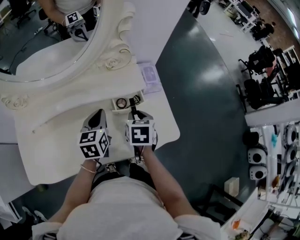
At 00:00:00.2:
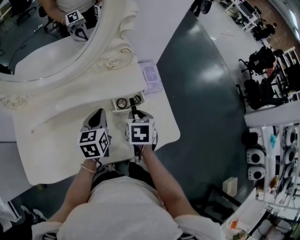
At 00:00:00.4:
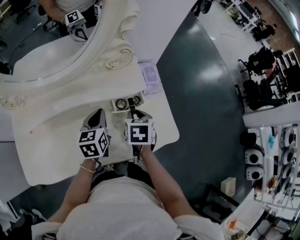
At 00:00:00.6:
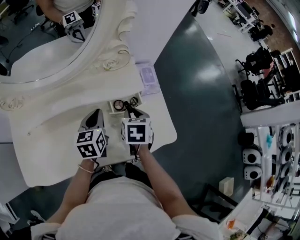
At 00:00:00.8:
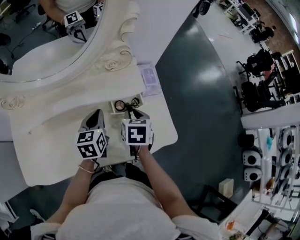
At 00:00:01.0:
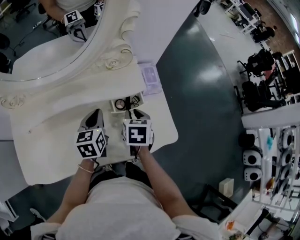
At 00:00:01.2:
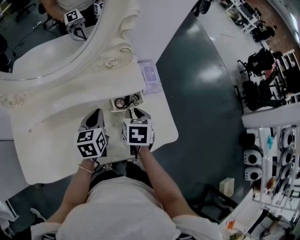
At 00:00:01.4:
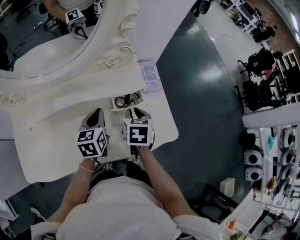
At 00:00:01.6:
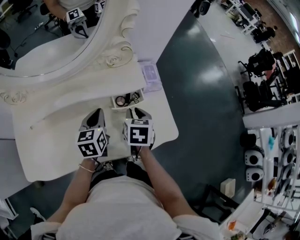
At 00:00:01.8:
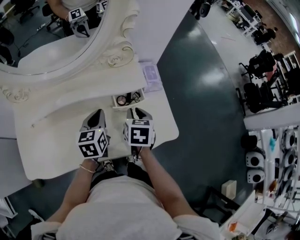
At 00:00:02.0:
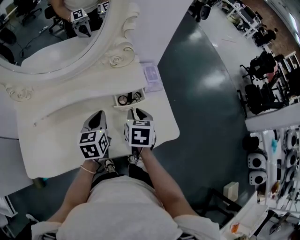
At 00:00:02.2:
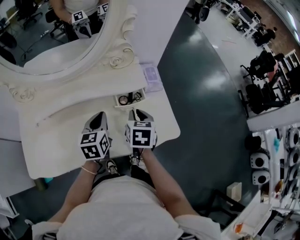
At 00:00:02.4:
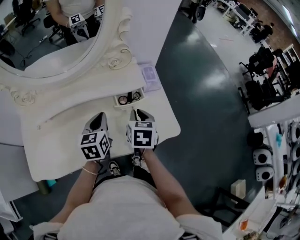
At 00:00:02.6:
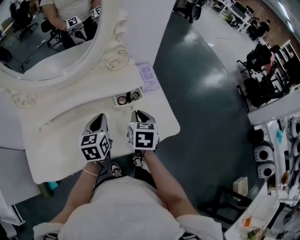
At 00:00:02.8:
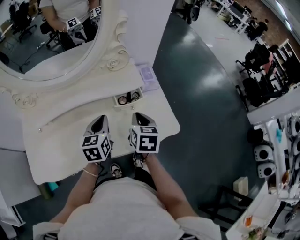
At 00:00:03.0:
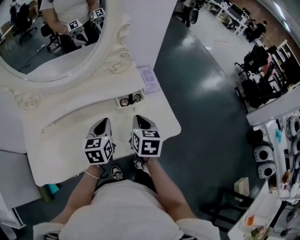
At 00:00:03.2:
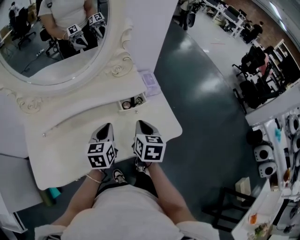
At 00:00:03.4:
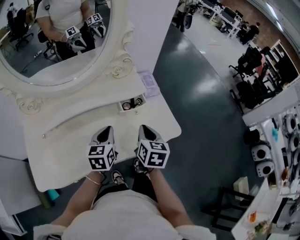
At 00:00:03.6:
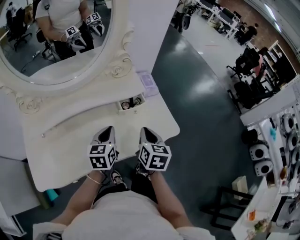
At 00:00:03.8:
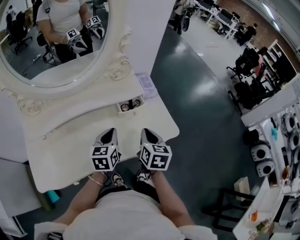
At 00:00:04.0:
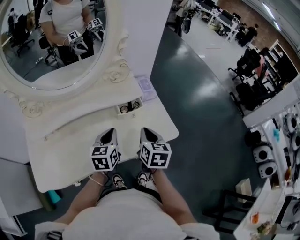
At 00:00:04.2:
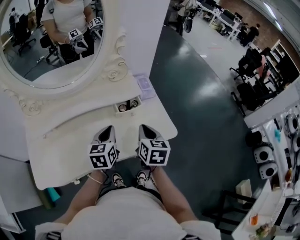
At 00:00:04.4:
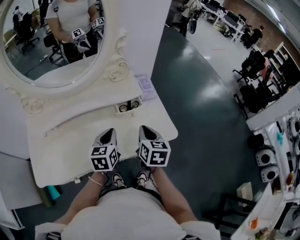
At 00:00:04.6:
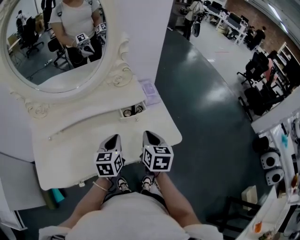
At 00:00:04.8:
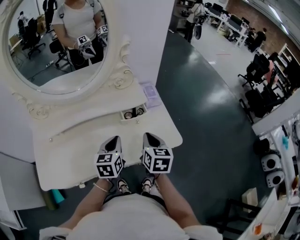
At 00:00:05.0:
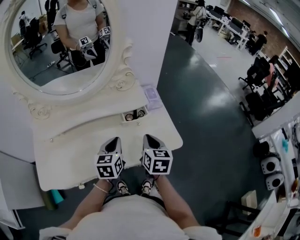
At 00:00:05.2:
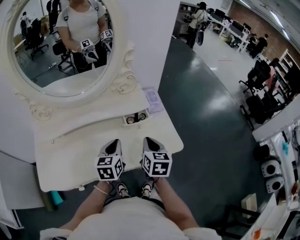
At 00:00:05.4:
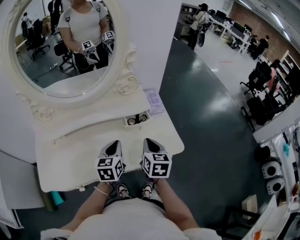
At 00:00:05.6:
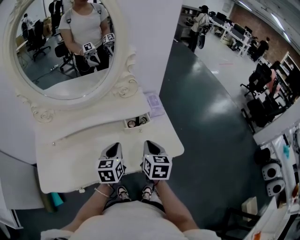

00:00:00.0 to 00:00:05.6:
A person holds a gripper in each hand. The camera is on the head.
00:00:00.0 to 00:00:01.4: The grippers make only small movements.
00:00:01.4 to 00:00:02.8: The two grippers go some 5 cm backward.
00:00:02.8 to 00:00:04.2: The right gripper moves backward, some 5 cm.
00:00:04.2 to 00:00:05.6: There are only small adjustments of the grippers.

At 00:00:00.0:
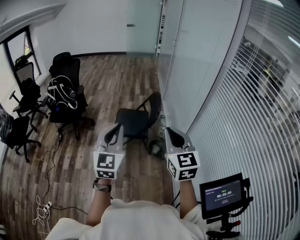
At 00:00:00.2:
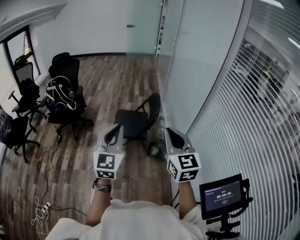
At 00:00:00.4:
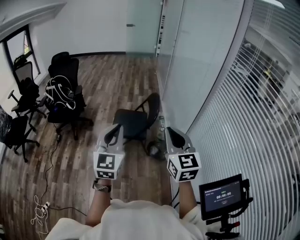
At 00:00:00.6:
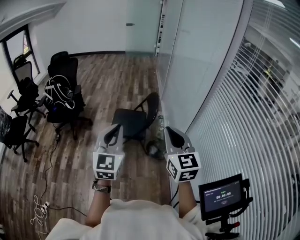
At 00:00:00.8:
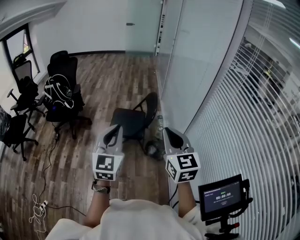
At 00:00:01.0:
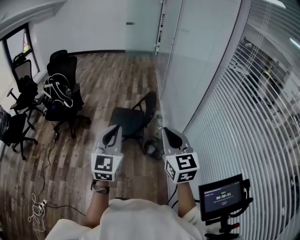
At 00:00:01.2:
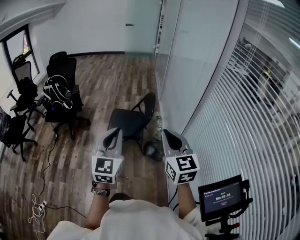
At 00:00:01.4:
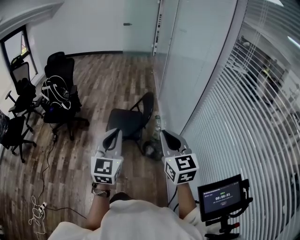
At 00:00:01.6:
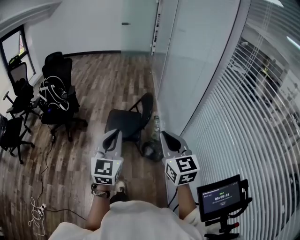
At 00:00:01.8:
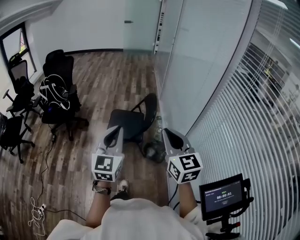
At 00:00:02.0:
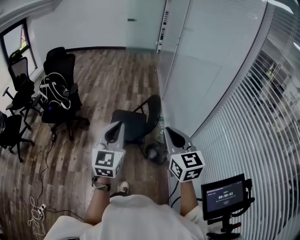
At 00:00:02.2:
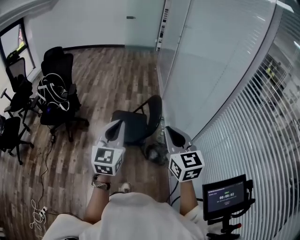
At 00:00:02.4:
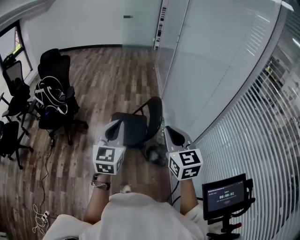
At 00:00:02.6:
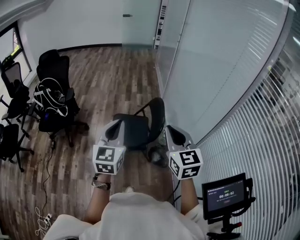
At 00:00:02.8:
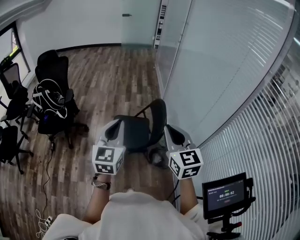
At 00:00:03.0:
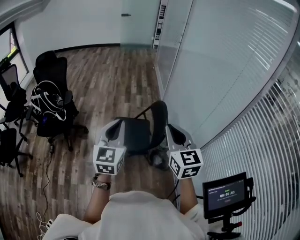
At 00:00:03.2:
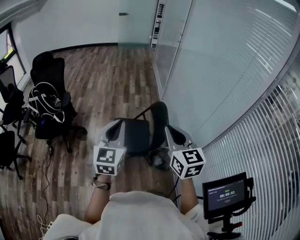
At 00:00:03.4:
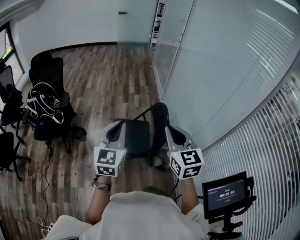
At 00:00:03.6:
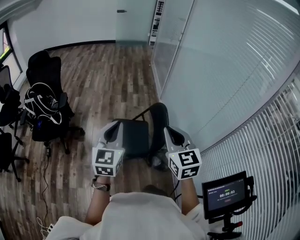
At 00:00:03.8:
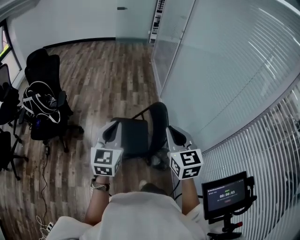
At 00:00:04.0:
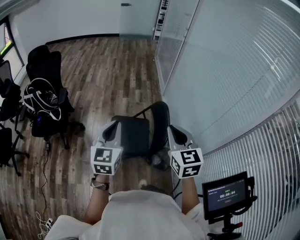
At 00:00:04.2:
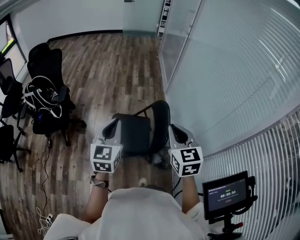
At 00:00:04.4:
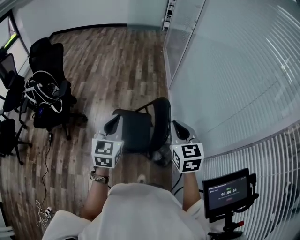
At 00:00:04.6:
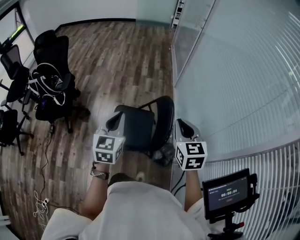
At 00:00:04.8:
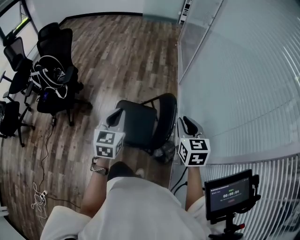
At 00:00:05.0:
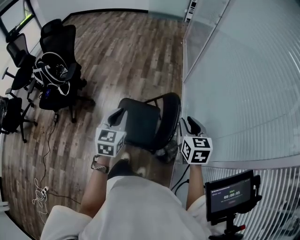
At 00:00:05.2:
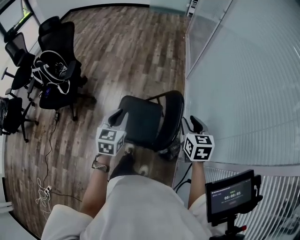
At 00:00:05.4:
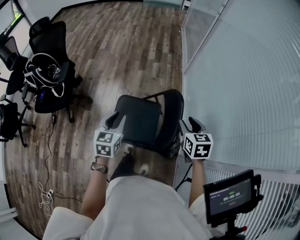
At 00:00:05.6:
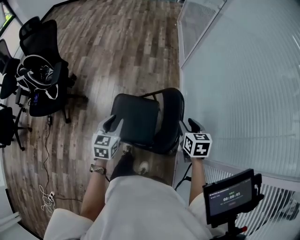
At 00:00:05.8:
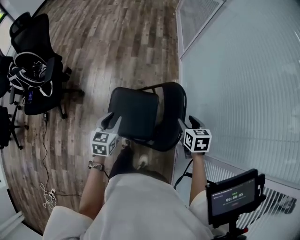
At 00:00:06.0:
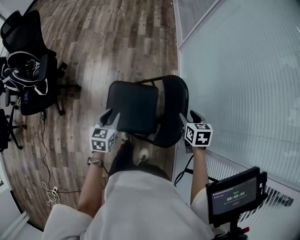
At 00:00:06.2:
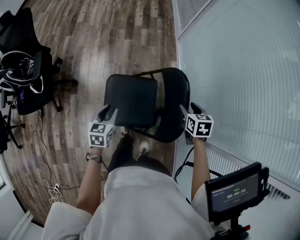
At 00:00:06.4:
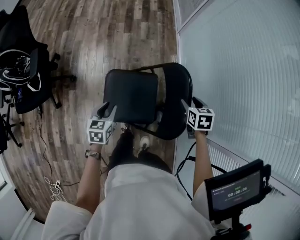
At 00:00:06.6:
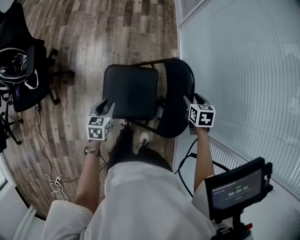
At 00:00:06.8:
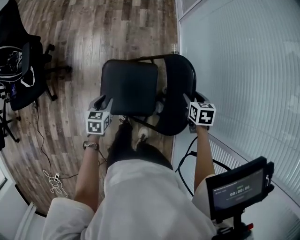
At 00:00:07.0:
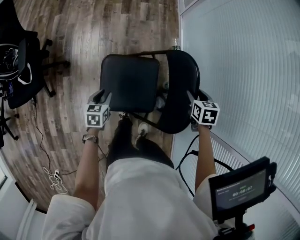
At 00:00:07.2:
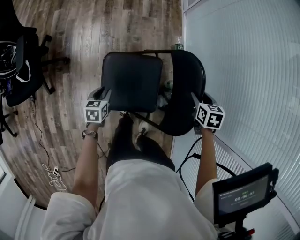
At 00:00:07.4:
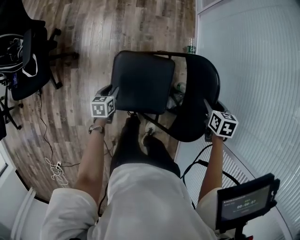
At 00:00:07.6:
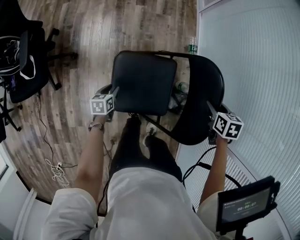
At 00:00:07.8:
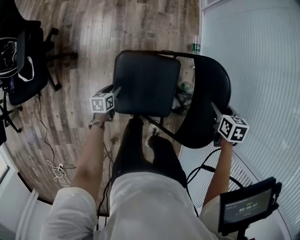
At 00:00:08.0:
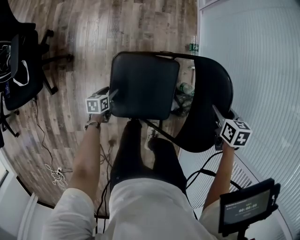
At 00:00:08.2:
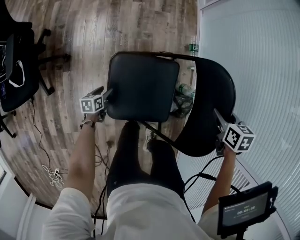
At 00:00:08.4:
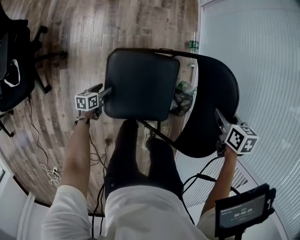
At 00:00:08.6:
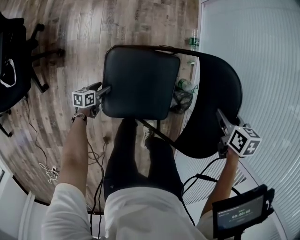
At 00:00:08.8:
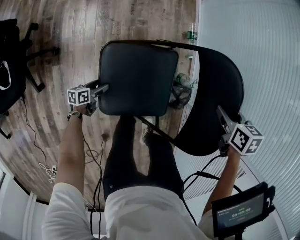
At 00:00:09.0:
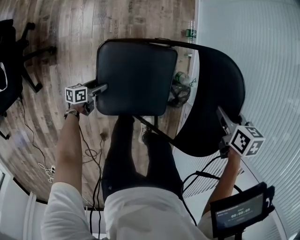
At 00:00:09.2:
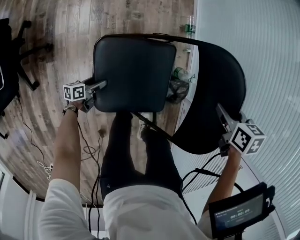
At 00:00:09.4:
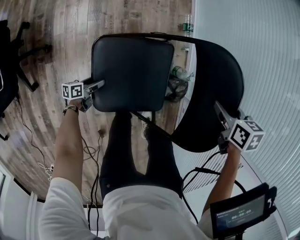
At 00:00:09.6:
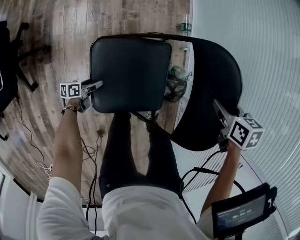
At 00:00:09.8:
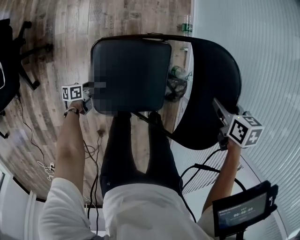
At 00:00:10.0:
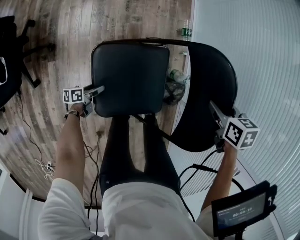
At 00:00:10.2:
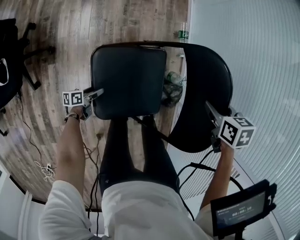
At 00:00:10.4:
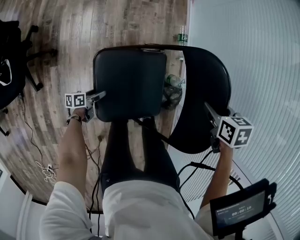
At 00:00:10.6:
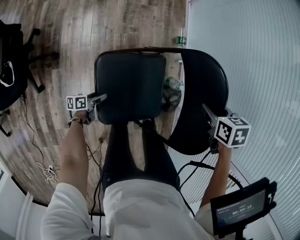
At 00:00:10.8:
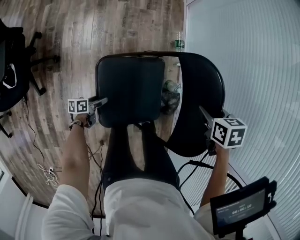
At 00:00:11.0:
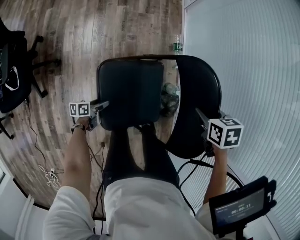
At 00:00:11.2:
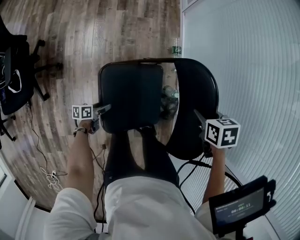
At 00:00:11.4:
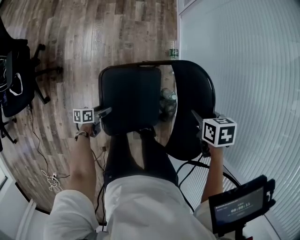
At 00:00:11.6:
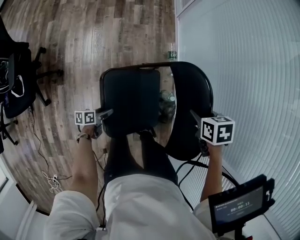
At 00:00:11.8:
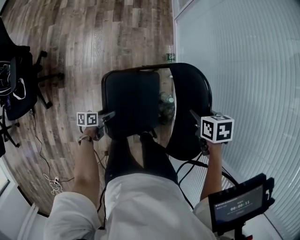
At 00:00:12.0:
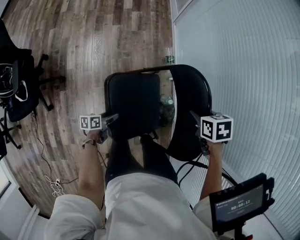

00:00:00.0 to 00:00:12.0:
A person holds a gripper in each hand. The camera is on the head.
00:00:00.0 to 00:00:01.6: The left gripper moves to the right, approximately 5 cm.
00:00:01.6 to 00:00:03.0: The two grippers go about 20 cm forward.
00:00:03.0 to 00:00:04.4: The two grippers go some 10 cm forward and downward.
00:00:04.4 to 00:00:06.0: The right gripper goes some 30 cm downward and forward, points its fingers about 30 degrees further downward, and opens up. The left gripper travels downward by roughly 25 cm, swivels about 30 degrees, and opens up.
00:00:06.0 to 00:00:07.6: The left gripper travels downward by about 25 cm, and changes its angle by approximately 30 degrees. Meanwhile the right gripper shifts roughly 10 cm downward.
00:00:07.6 to 00:00:09.0: The left gripper travels downward by approximately 15 cm, rotates approximately 30 degrees, and opens.
00:00:09.0 to 00:00:10.4: The left gripper shifts by some 5 cm.
00:00:10.4 to 00:00:12.0: The right gripper moves about 5 cm, while the left gripper heads upward, covering some 10 cm.

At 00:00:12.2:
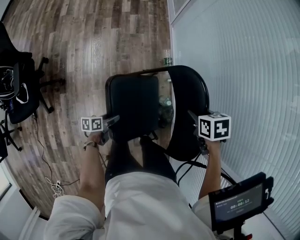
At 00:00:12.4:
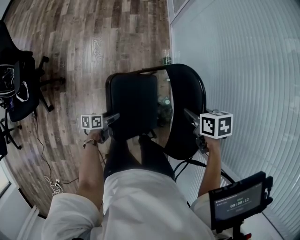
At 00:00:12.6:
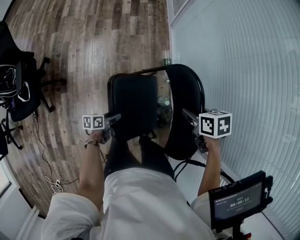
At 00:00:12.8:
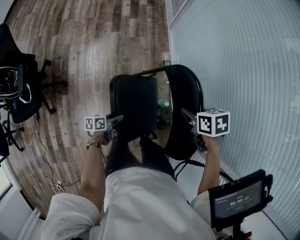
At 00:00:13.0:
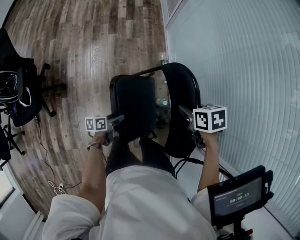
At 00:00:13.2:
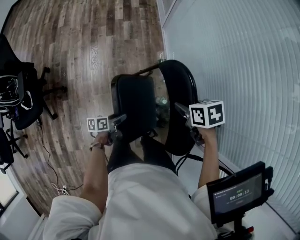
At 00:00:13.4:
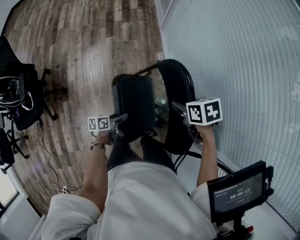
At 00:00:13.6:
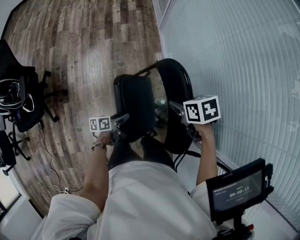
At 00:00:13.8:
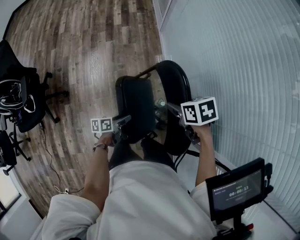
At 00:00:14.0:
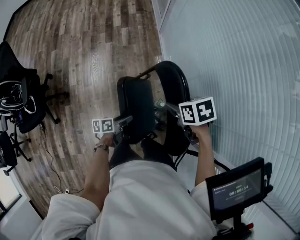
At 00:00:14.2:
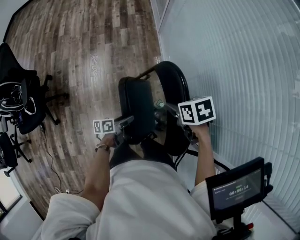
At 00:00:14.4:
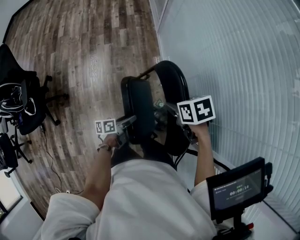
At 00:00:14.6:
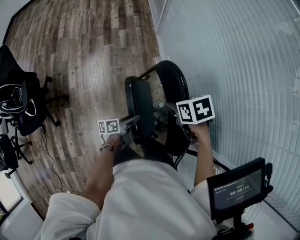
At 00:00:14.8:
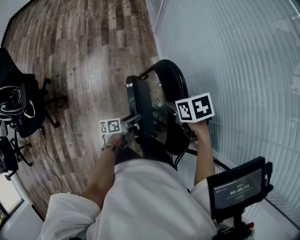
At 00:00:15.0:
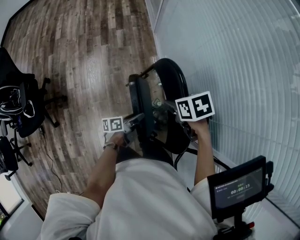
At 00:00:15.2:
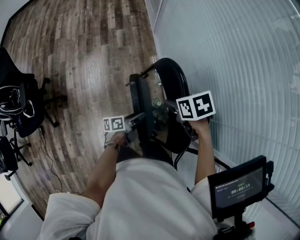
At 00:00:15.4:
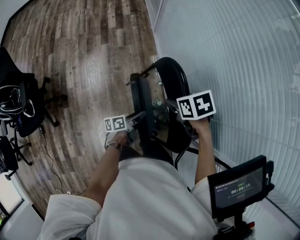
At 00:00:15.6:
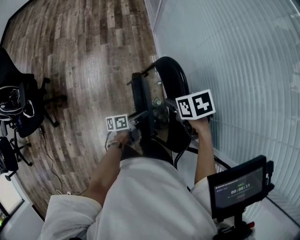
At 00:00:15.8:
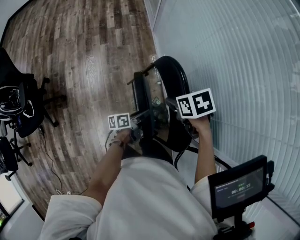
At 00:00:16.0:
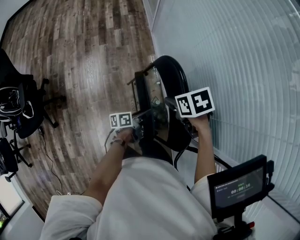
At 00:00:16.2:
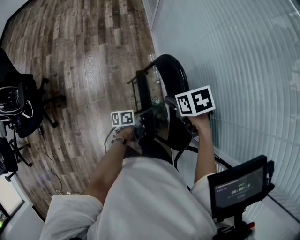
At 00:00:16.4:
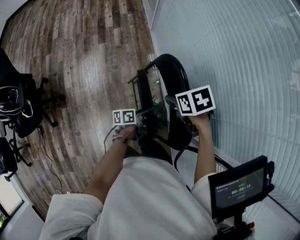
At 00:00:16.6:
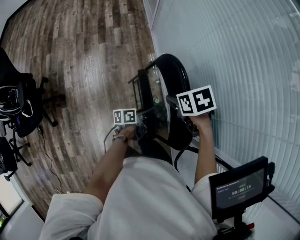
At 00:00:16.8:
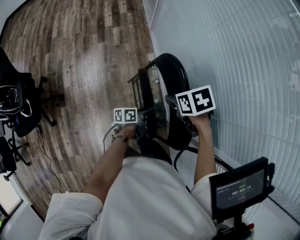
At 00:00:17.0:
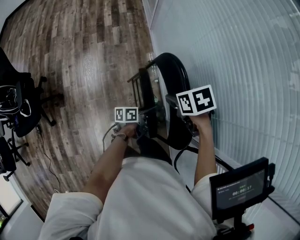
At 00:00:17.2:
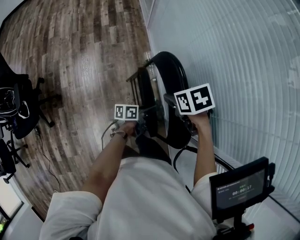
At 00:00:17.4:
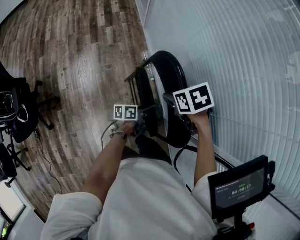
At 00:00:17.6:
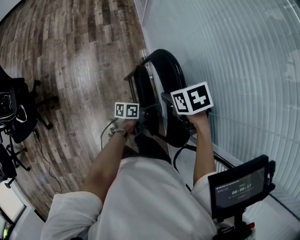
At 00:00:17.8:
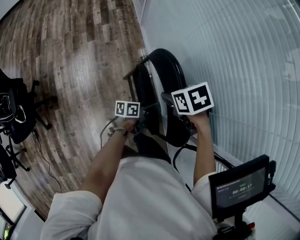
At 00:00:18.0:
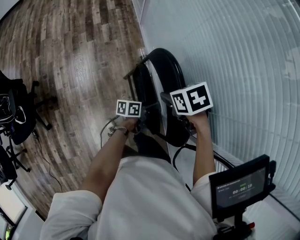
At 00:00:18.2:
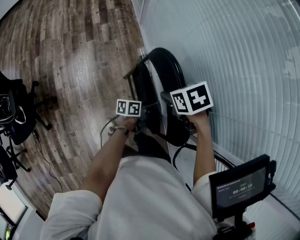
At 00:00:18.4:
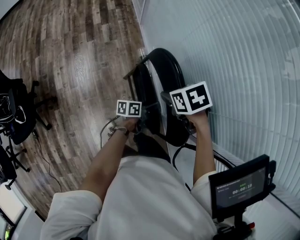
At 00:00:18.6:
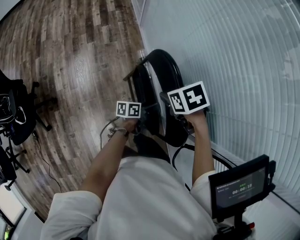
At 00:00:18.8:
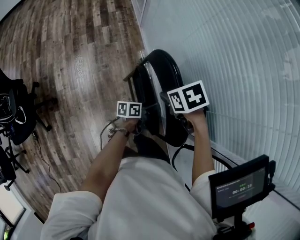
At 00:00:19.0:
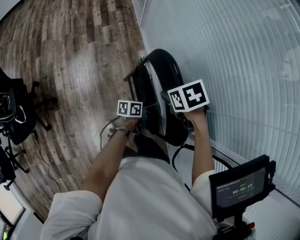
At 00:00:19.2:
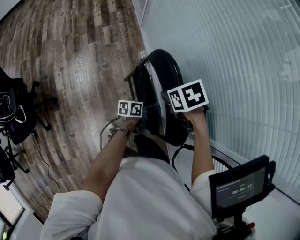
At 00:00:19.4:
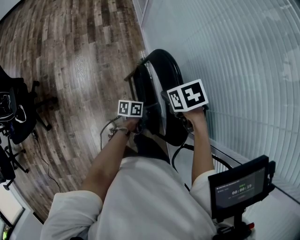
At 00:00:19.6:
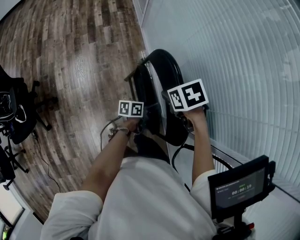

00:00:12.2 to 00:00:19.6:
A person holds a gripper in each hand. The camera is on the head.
00:00:12.2 to 00:00:13.6: The left gripper shifts roughly 10 cm to the right and upward. The right gripper changes place by approximately 5 cm.
00:00:13.6 to 00:00:15.2: The left gripper heads to the right, covering roughly 10 cm.
00:00:15.2 to 00:00:16.6: The left gripper shifts some 5 cm to the right.
00:00:16.6 to 00:00:18.2: The left gripper shifts by roughly 5 cm.
00:00:18.2 to 00:00:19.6: The grippers stay close to where they were, moving slightly.
